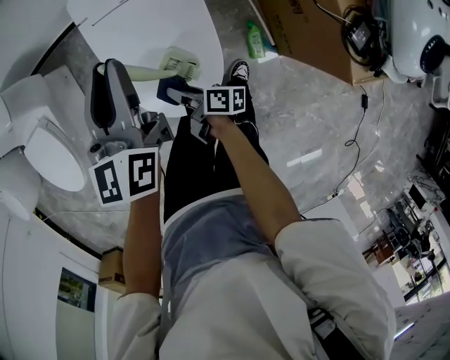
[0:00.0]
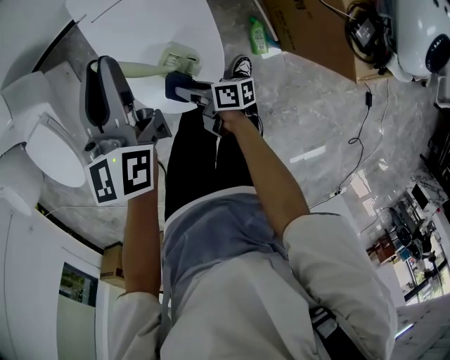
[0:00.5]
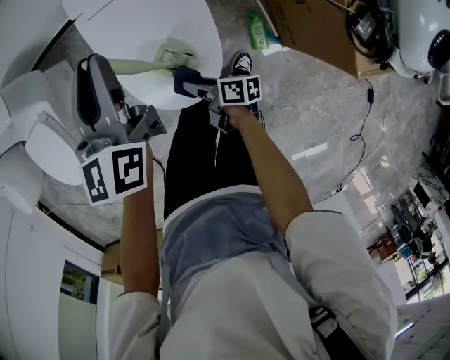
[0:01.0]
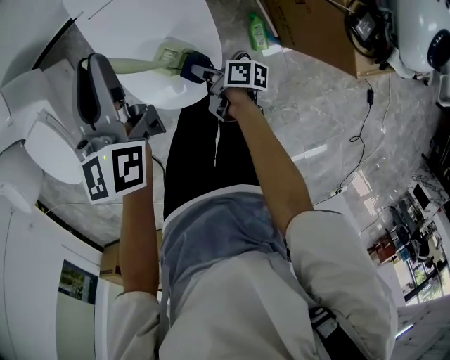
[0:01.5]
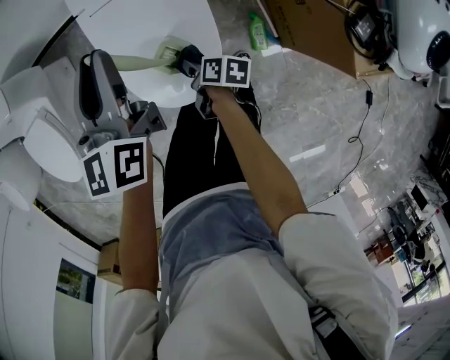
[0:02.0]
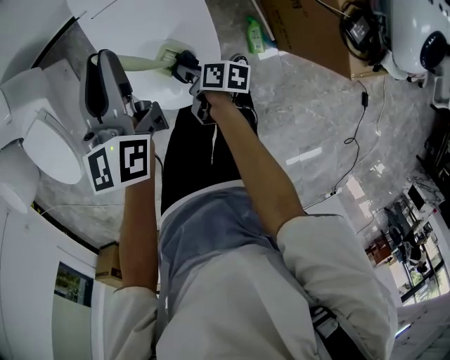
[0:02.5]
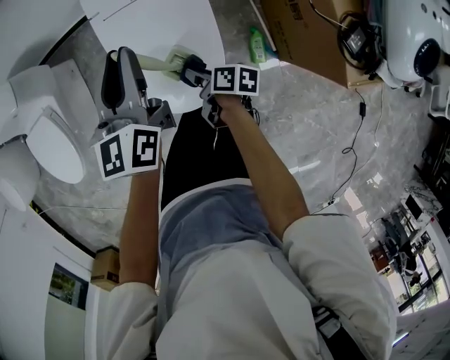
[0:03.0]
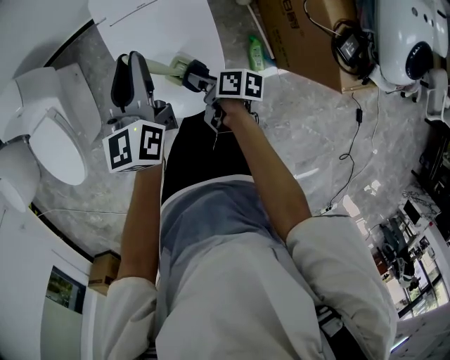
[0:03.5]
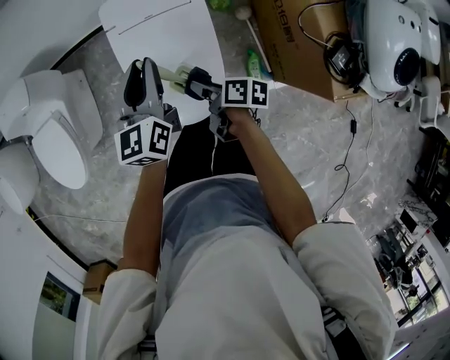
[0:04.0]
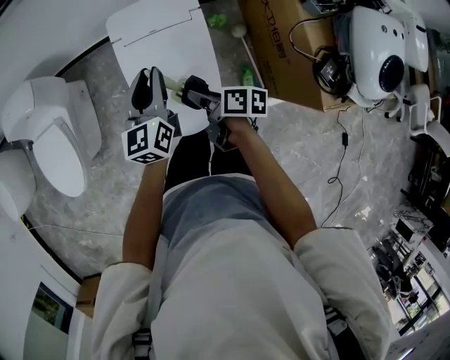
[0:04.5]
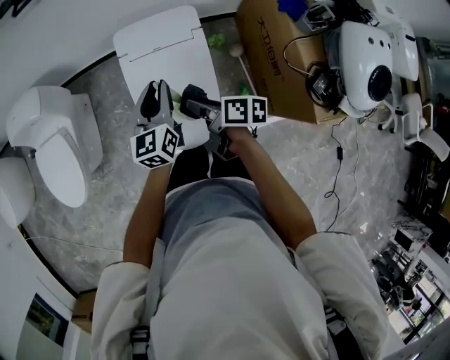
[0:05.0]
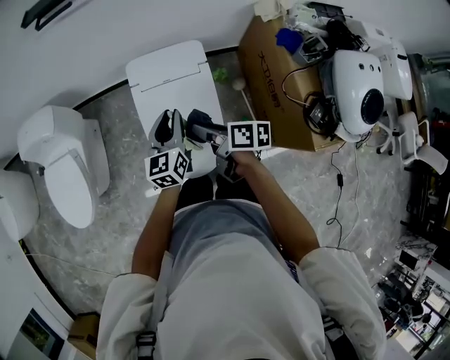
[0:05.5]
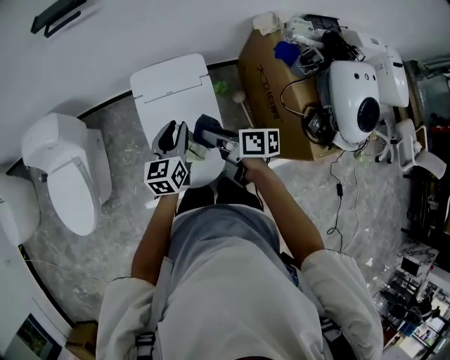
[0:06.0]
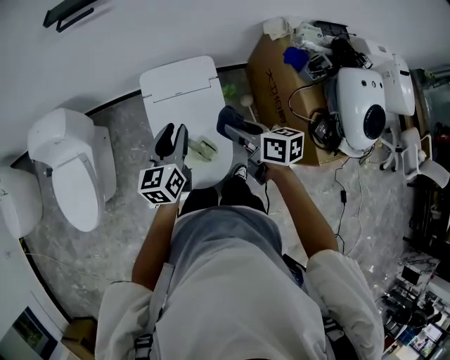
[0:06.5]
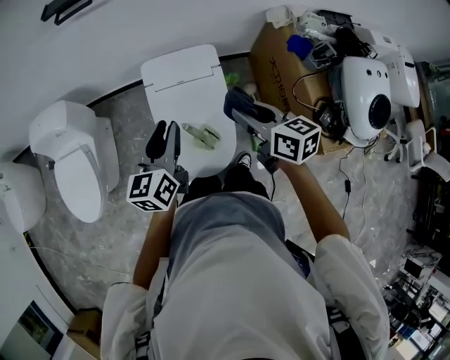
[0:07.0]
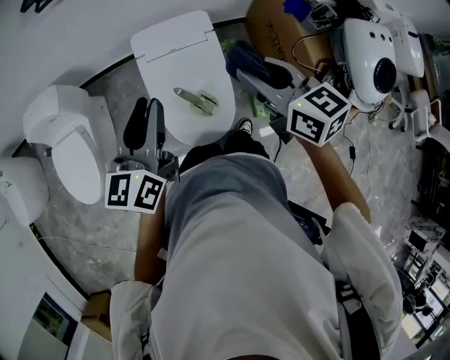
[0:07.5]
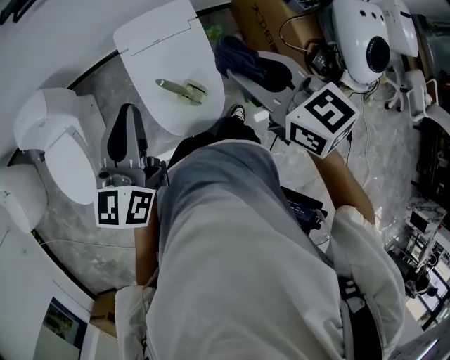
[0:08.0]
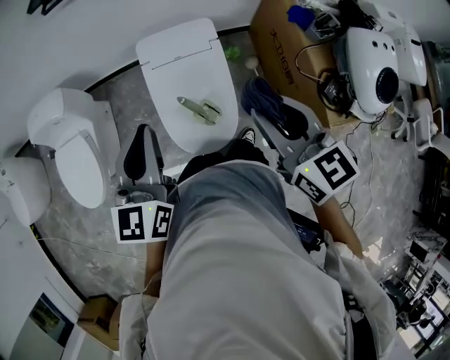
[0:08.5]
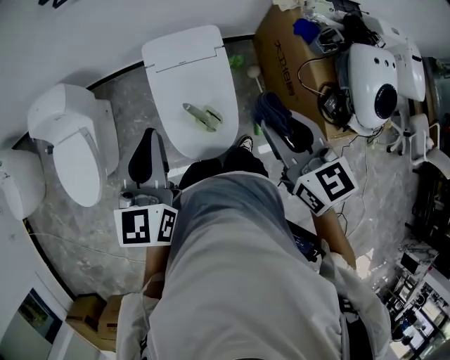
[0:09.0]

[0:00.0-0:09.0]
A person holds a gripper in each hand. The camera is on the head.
0:00.0 to 0:02.0: The right gripper is displaced to the right by approximately 5 cm, and turns by some 30 degrees.
0:02.0 to 0:04.5: The right gripper is displaced upward by about 20 cm.
0:04.5 to 0:07.0: The left gripper is displaced upward and to the left by roughly 10 cm. Meanwhile the right gripper heads upward, covering some 20 cm, and rotates around the line of its fingers by some 40 degrees, counterclockwise from behind.
0:07.0 to 0:09.0: The grippers both shift upward and backward by approximately 10 cm. The right gripper turns by approximately 20 degrees.

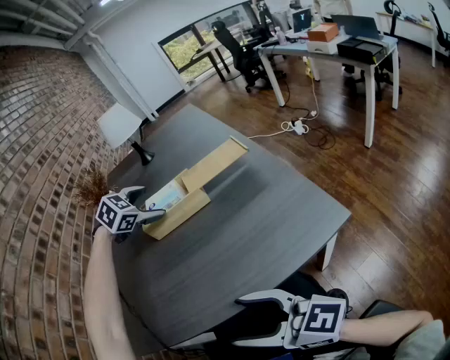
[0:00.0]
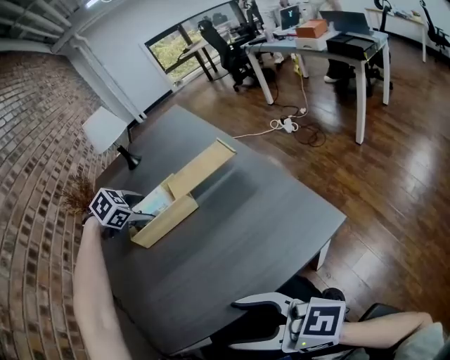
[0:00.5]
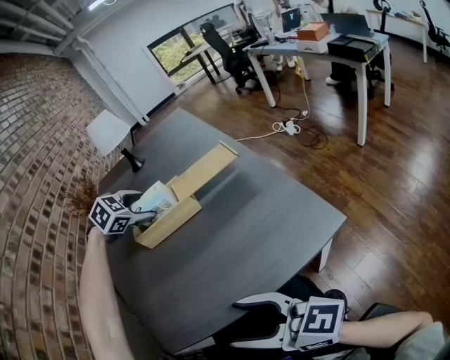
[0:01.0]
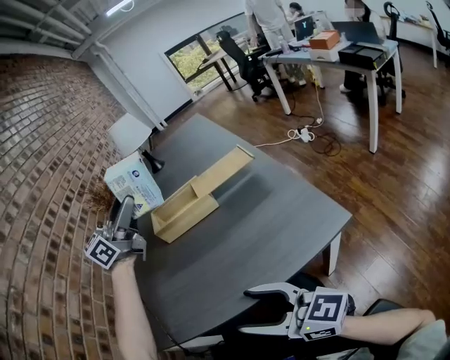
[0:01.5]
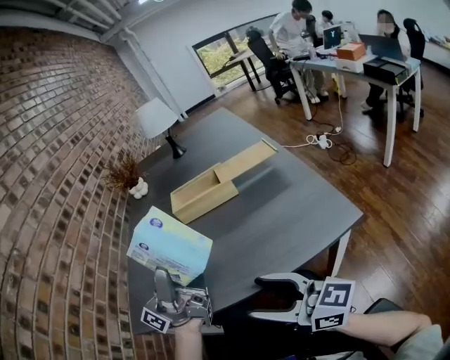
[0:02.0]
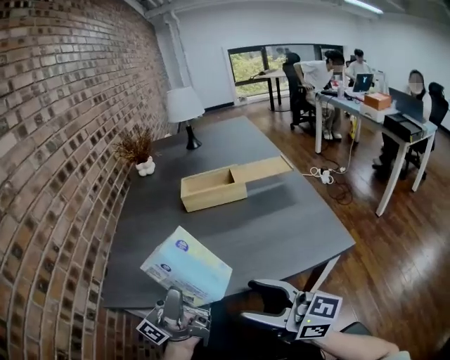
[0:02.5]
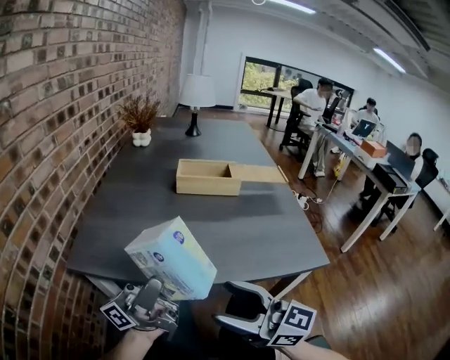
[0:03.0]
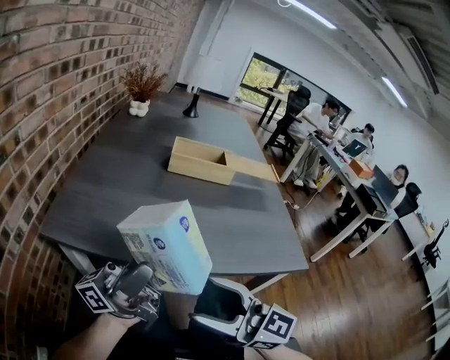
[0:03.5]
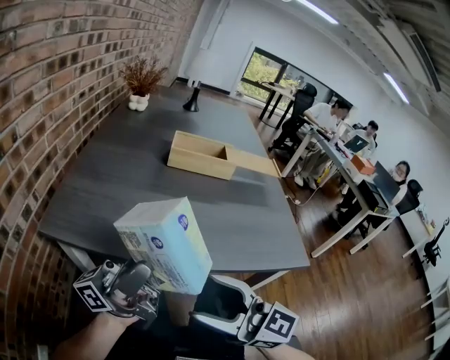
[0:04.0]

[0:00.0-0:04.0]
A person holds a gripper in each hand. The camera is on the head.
0:00.0 to 0:02.0: The left gripper shifts approximately 30 cm backward, and tilts its fingers about 100 degrees upward.
0:02.0 to 0:04.0: The left gripper travels backward and downward by about 10 cm, while the right gripper heads to the left, covering about 5 cm, and changes its angle by approximately 20 degrees.

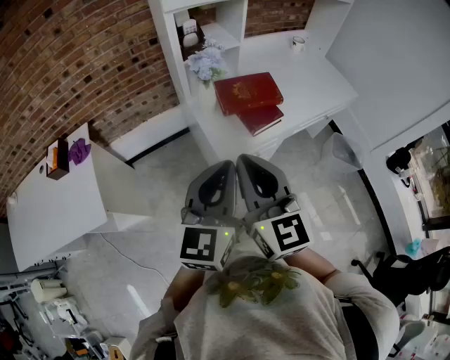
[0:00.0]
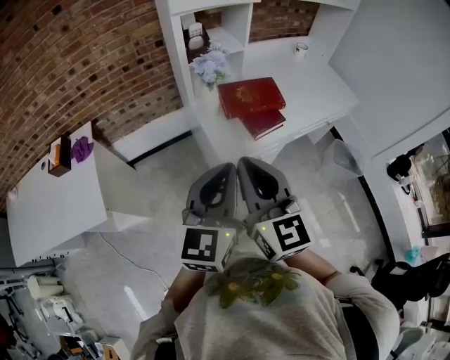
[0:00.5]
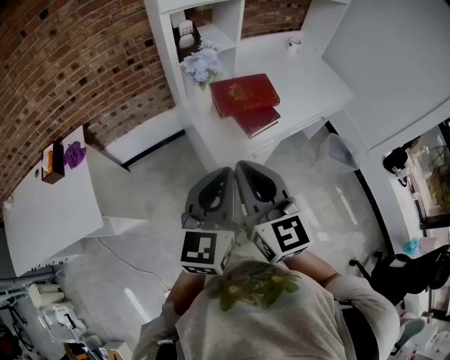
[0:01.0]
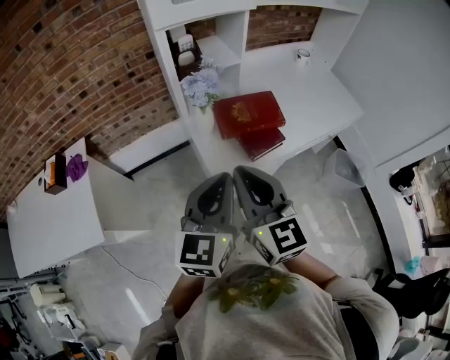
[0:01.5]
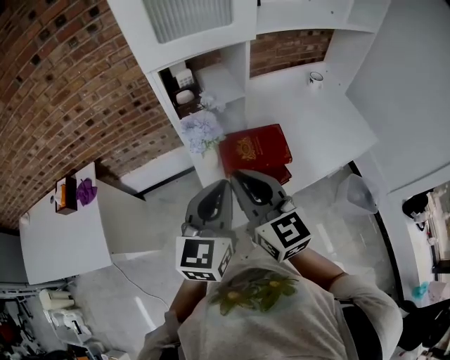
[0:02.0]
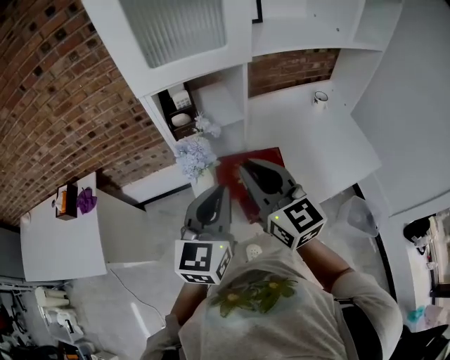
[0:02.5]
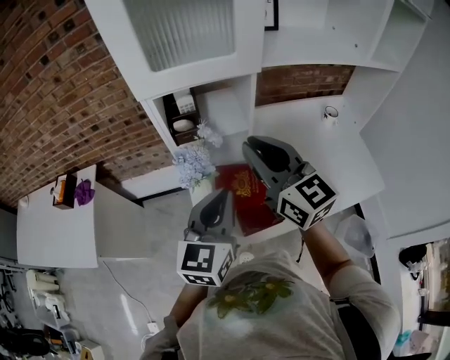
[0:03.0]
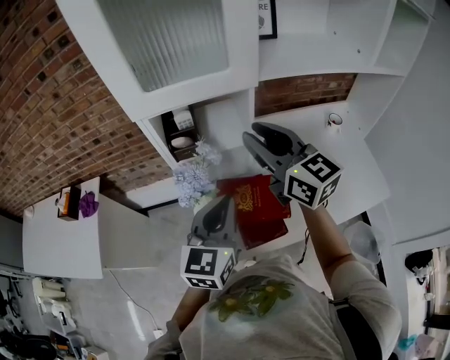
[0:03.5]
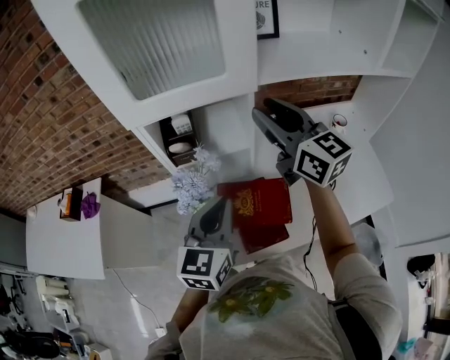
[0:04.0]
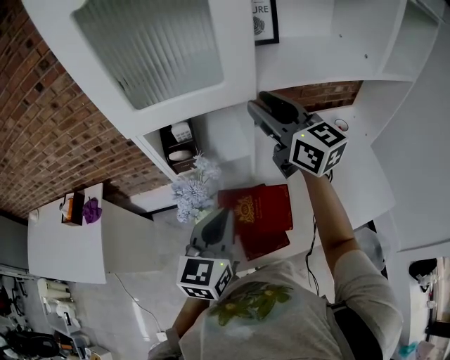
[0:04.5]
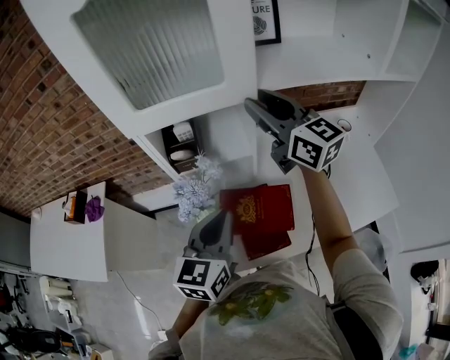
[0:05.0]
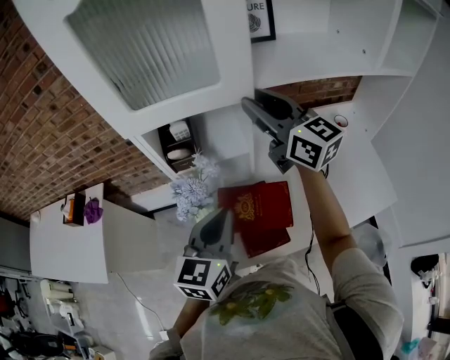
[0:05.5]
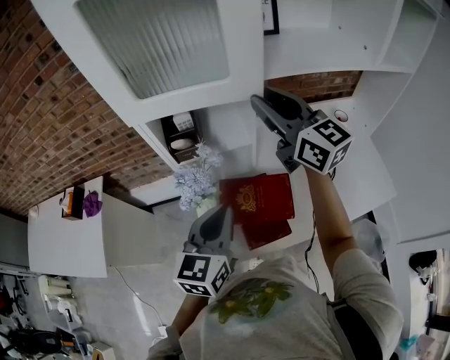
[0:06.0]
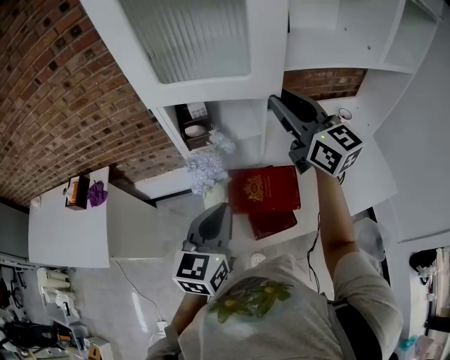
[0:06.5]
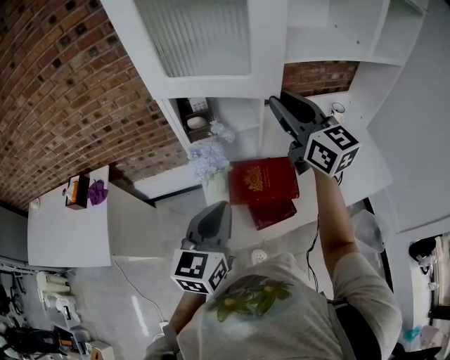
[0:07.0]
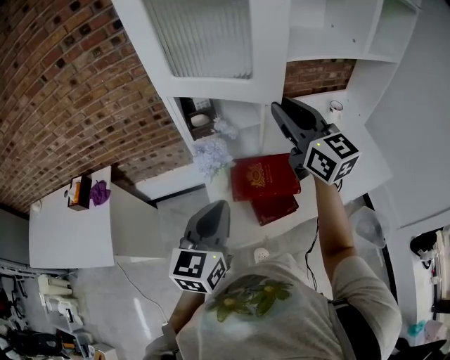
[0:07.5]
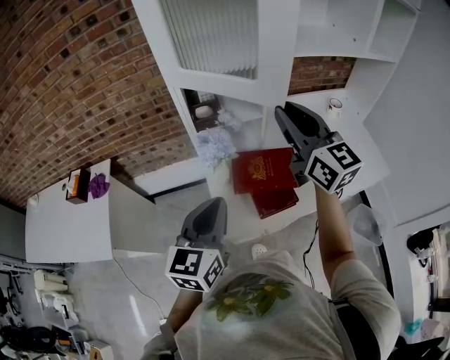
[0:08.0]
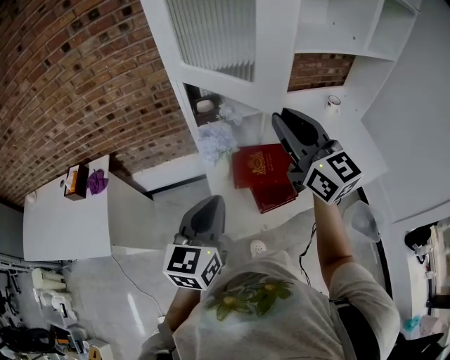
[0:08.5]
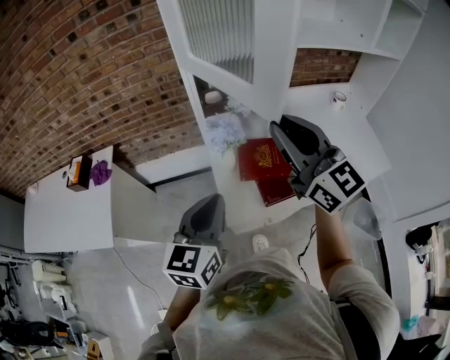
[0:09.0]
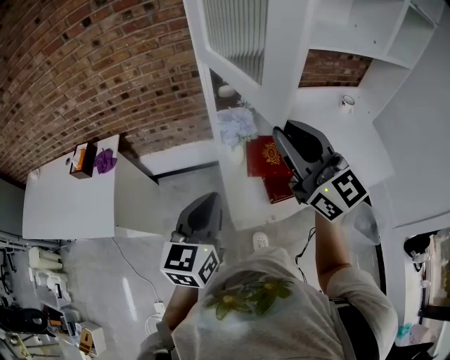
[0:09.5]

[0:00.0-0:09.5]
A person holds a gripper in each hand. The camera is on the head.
0:00.0 to 0:02.0: The two grippers go roughly 20 cm forward.
0:02.0 to 0:04.0: The left gripper travels forward and to the right by some 15 cm, while the right gripper is displaced forward and to the right by some 30 cm, and opens up.
0:04.0 to 0:05.5: There are only small adjustments of the grippers.
0:05.5 to 0:07.5: The left gripper travels backward and to the left by about 15 cm, while the right gripper heads backward, covering about 15 cm.
0:07.5 to 0:09.5: The left gripper heads to the left and backward, covering some 10 cm. Meanwhile the right gripper travels backward and to the left by about 15 cm.

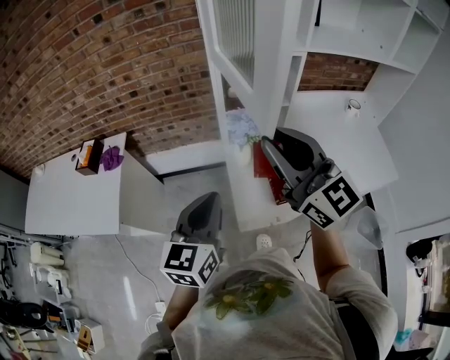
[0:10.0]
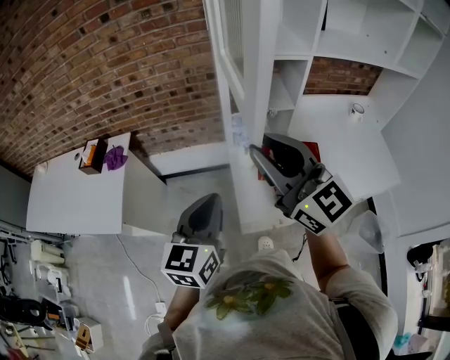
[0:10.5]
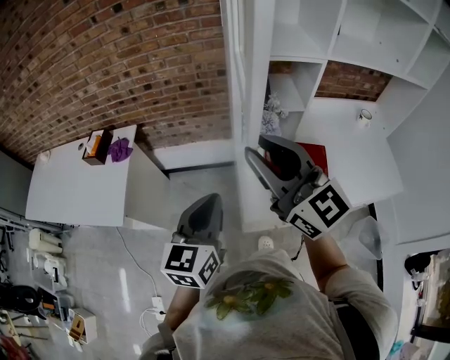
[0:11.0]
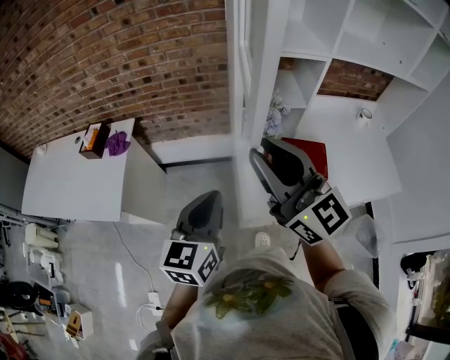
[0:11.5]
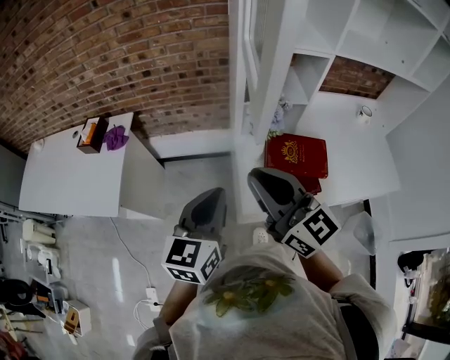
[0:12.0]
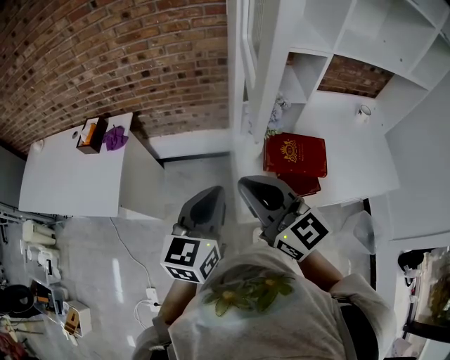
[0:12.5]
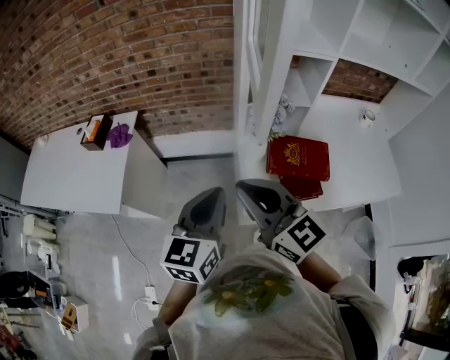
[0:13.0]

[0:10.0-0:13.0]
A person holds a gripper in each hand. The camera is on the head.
0:10.0 to 0:11.5: The right gripper goes roughly 5 cm to the left.
0:11.5 to 0:13.0: The right gripper shifts about 10 cm downward.

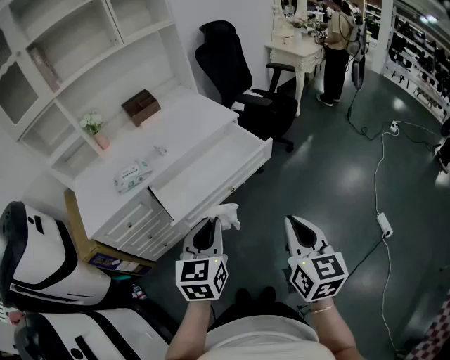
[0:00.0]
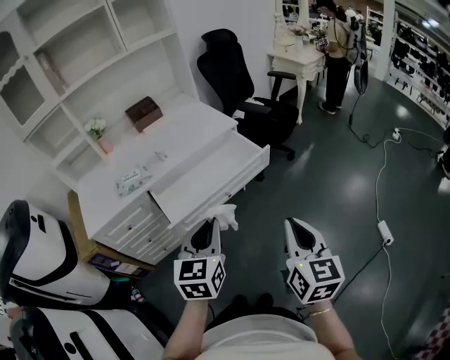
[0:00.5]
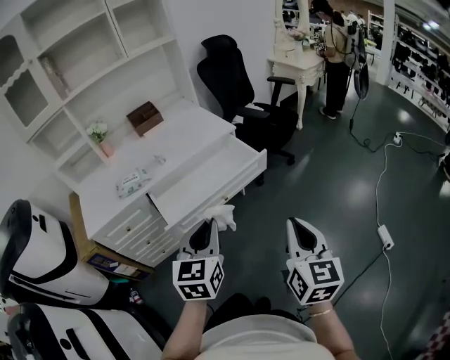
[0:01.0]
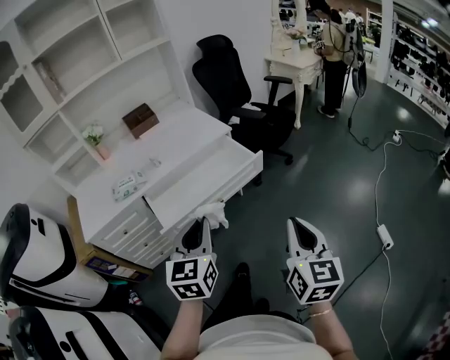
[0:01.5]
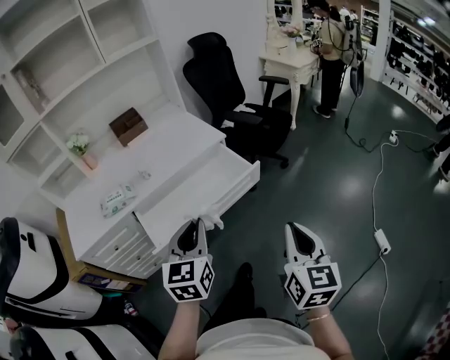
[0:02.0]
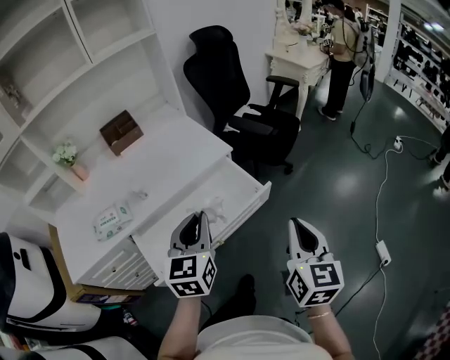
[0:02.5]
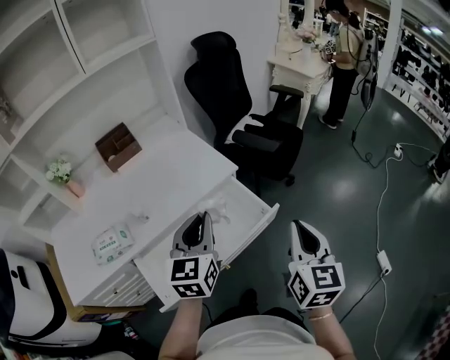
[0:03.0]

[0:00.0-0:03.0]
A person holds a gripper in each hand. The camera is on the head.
0:00.0 to 0:01.5: The right gripper is displaced to the right by about 10 cm.
0:01.5 to 0:03.0: The two grippers go approximately 35 cm forward.
